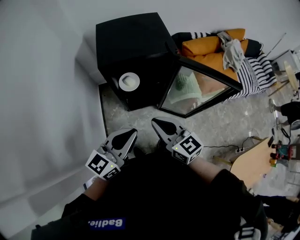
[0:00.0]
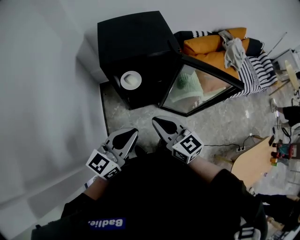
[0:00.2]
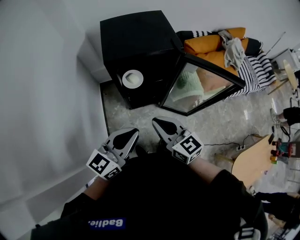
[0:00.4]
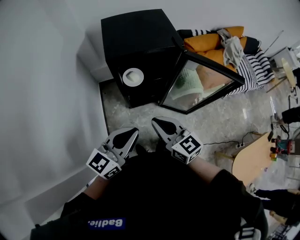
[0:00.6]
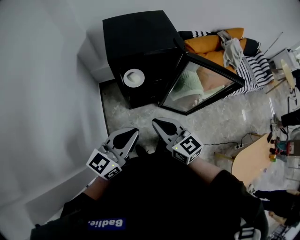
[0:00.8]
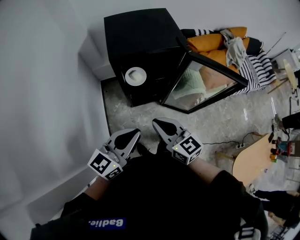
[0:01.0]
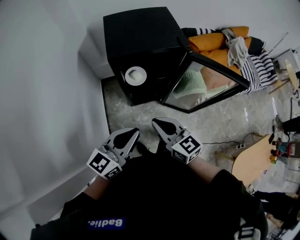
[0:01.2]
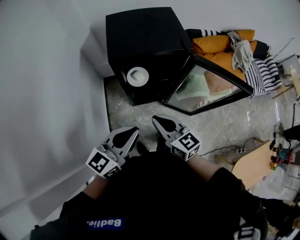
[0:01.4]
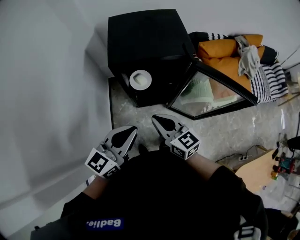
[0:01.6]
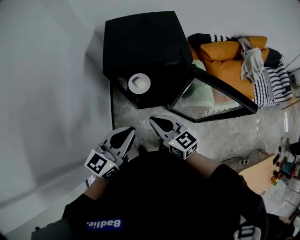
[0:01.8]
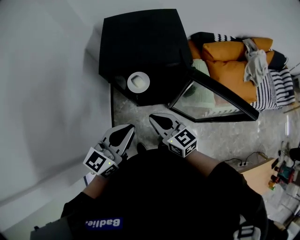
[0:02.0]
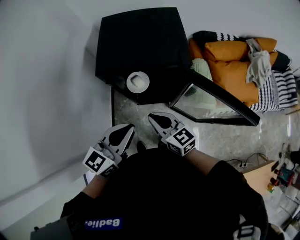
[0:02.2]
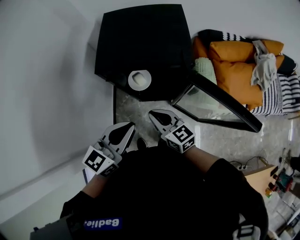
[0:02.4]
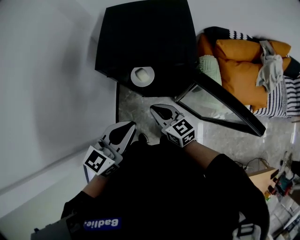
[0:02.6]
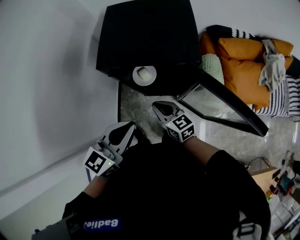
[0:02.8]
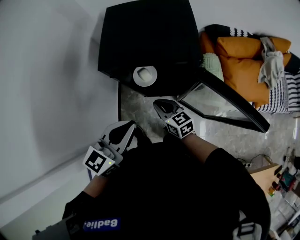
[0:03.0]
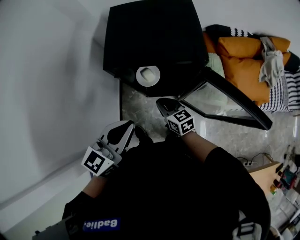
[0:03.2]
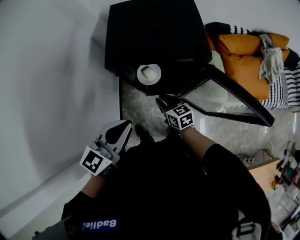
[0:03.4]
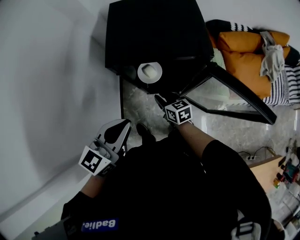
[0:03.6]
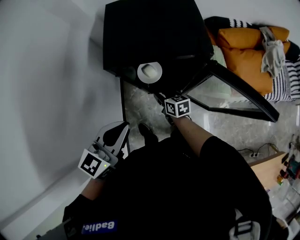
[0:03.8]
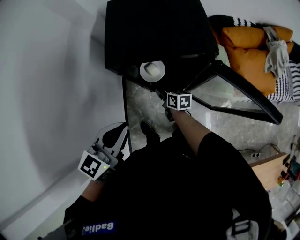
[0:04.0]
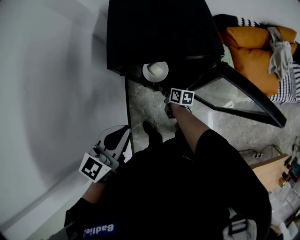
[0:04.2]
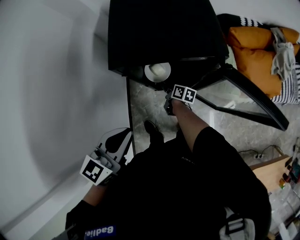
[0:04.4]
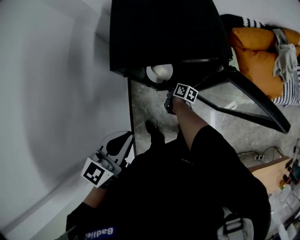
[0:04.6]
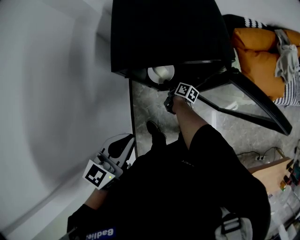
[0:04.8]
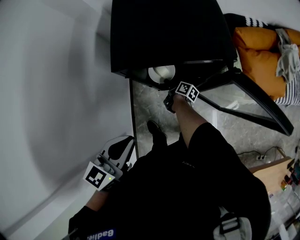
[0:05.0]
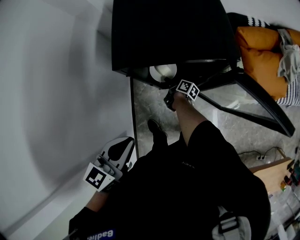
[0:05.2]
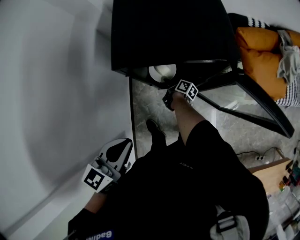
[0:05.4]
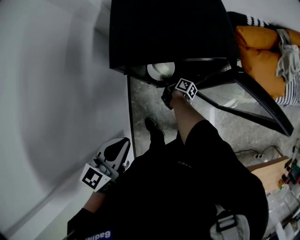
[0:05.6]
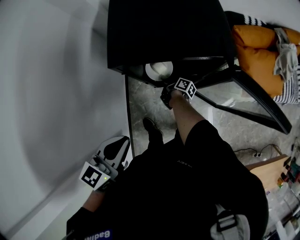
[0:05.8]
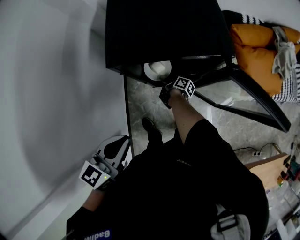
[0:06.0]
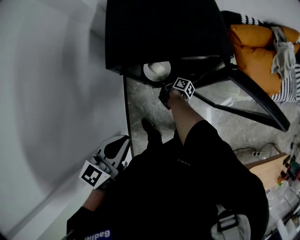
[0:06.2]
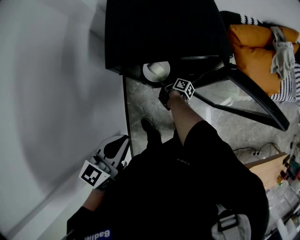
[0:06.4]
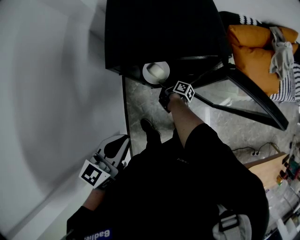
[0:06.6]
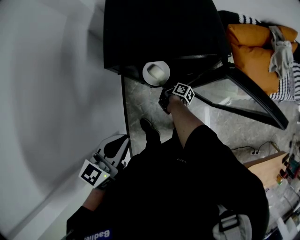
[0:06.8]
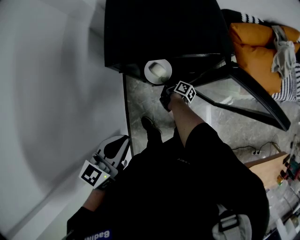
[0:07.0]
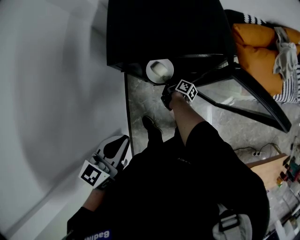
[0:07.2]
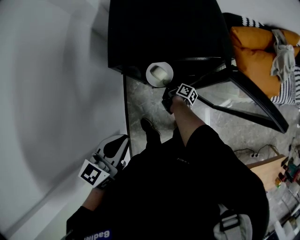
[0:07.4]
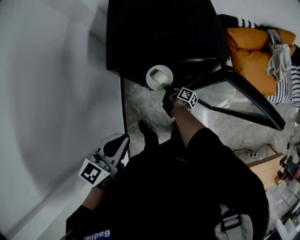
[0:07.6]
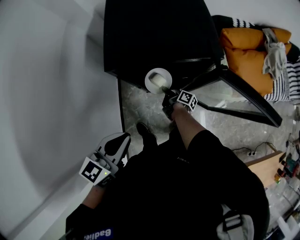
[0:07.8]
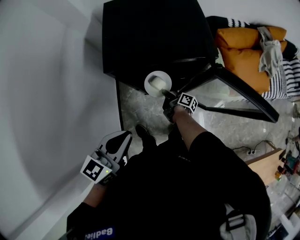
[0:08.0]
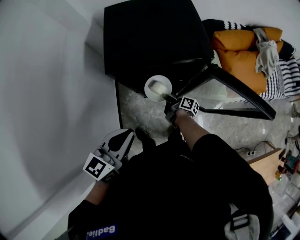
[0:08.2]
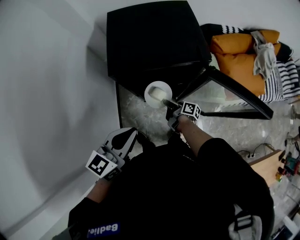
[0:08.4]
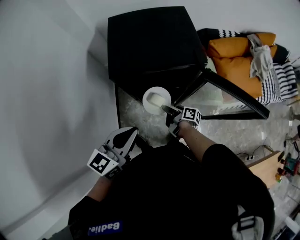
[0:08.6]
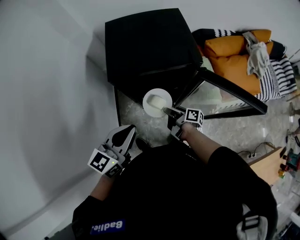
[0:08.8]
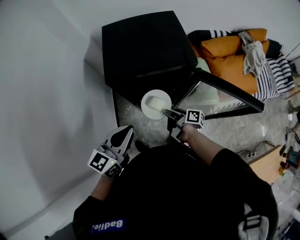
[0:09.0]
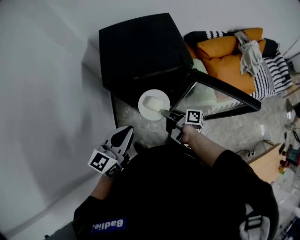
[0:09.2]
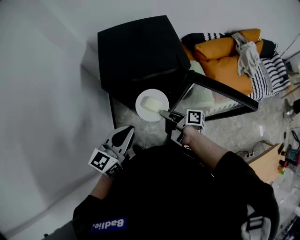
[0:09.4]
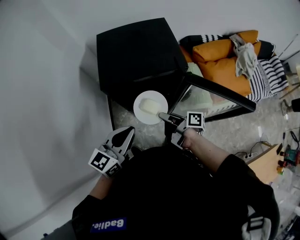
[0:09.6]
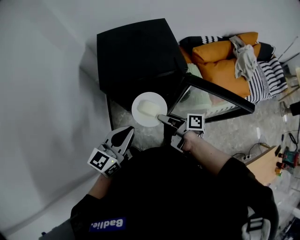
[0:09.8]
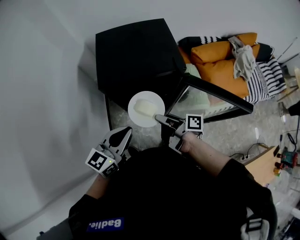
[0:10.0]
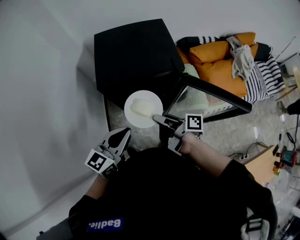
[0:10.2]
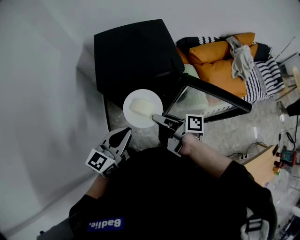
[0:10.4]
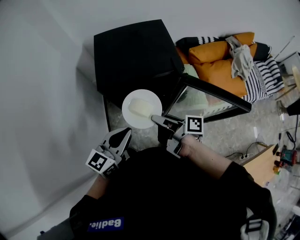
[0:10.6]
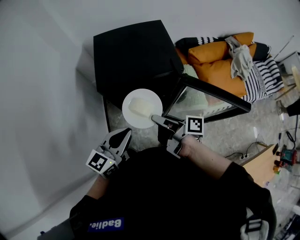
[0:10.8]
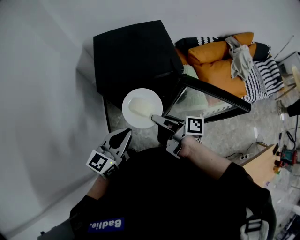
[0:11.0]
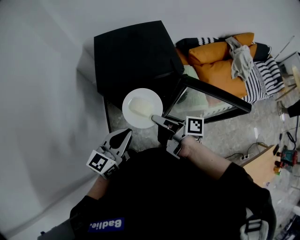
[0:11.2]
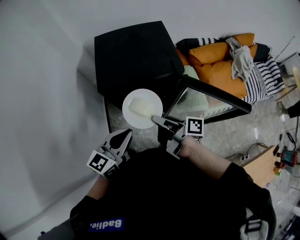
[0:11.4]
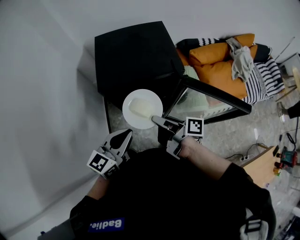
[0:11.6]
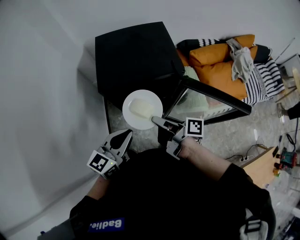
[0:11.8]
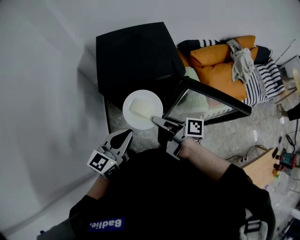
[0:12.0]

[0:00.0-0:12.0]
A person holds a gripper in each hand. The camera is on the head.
0:00.0 to 0:01.6: The left gripper changes place by approximately 5 cm. The right gripper goes about 5 cm downward.
0:01.6 to 0:03.0: The right gripper goes approximately 15 cm downward and forward. Meanwhile the left gripper travels forward and to the right by about 10 cm.
0:03.0 to 0:04.4: The left gripper moves to the left, approximately 10 cm, while the right gripper goes approximately 20 cm downward and forward, twists roughly 50 degrees clockwise, seen from behind, and opens up.
0:04.4 to 0:06.0: The right gripper changes its angle by roughly 30 degrees, and closes up.
0:06.0 to 0:07.6: The right gripper shifts by approximately 5 cm.
0:07.6 to 0:09.0: The left gripper ends up some 5 cm from where it was. The right gripper goes some 20 cm upward and backward.
0:09.0 to 0:10.4: The right gripper moves upward, about 15 cm.
0:10.4 to 0:12.0: Both grippers stay about where they are.

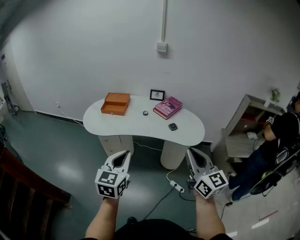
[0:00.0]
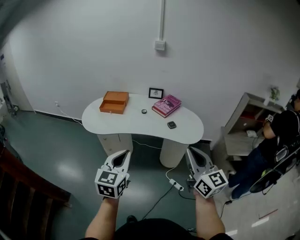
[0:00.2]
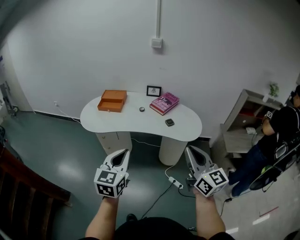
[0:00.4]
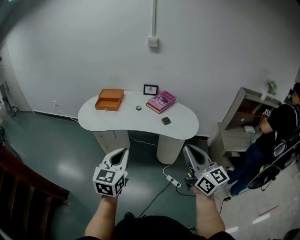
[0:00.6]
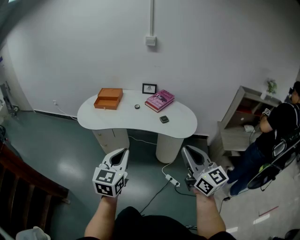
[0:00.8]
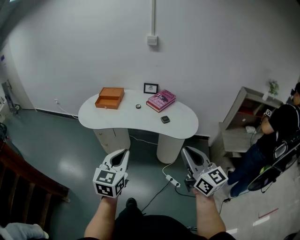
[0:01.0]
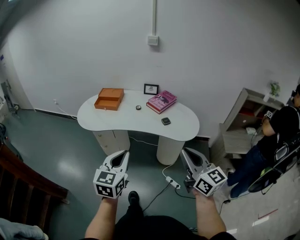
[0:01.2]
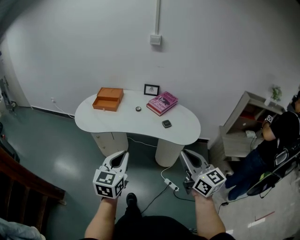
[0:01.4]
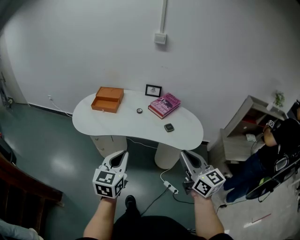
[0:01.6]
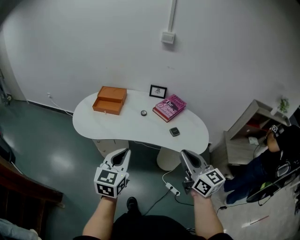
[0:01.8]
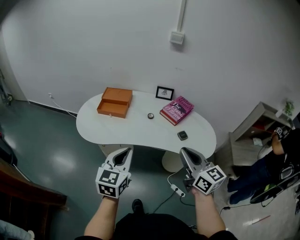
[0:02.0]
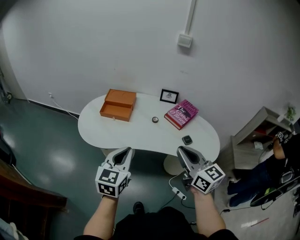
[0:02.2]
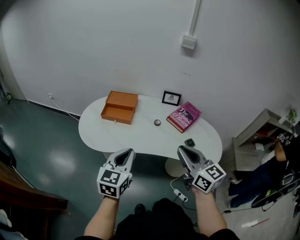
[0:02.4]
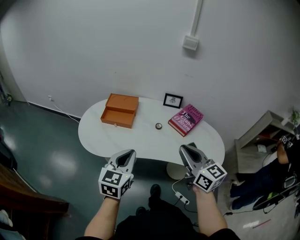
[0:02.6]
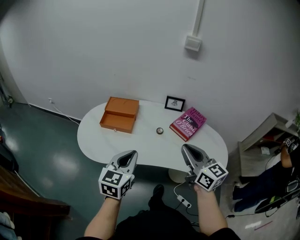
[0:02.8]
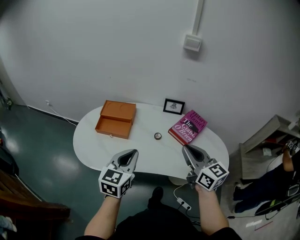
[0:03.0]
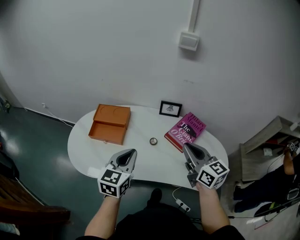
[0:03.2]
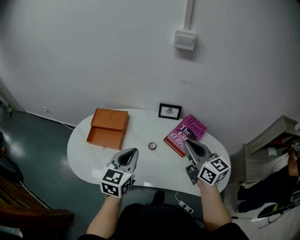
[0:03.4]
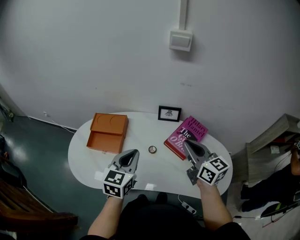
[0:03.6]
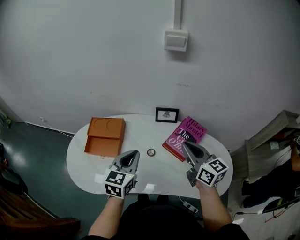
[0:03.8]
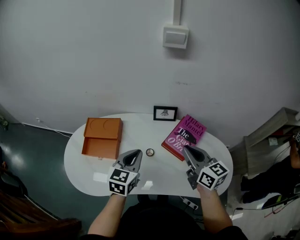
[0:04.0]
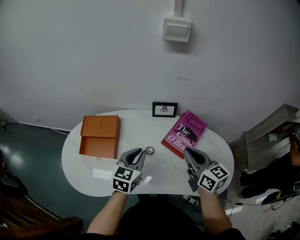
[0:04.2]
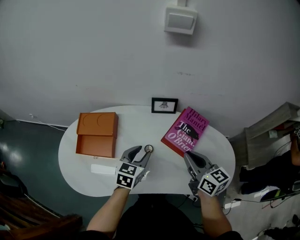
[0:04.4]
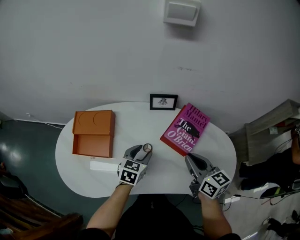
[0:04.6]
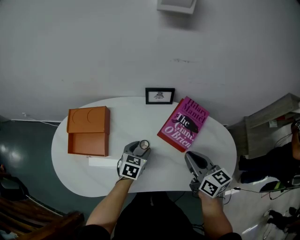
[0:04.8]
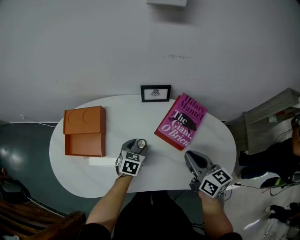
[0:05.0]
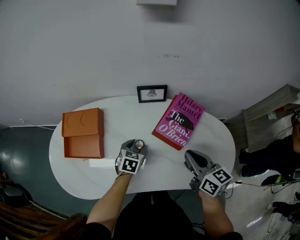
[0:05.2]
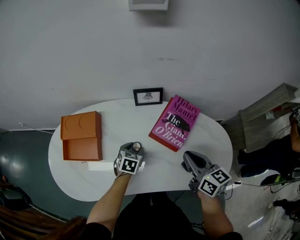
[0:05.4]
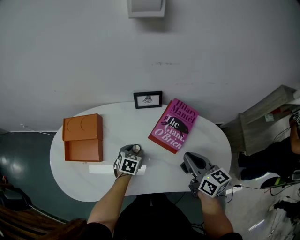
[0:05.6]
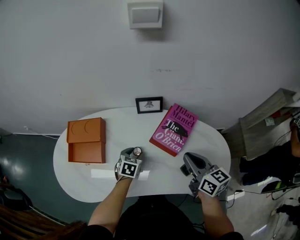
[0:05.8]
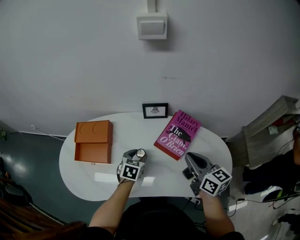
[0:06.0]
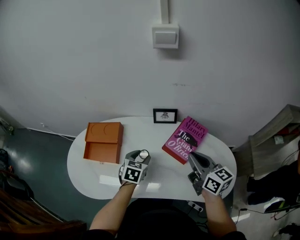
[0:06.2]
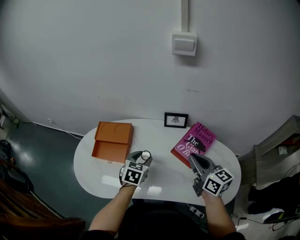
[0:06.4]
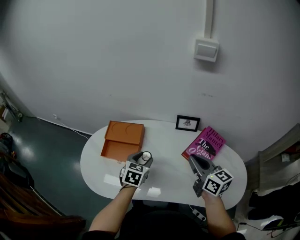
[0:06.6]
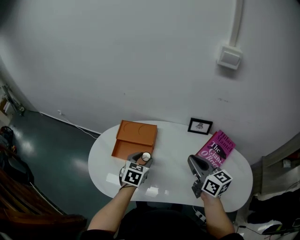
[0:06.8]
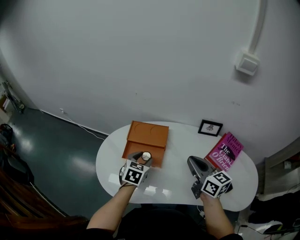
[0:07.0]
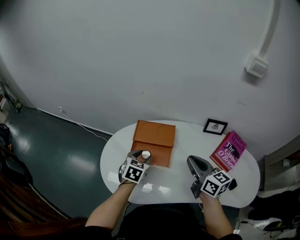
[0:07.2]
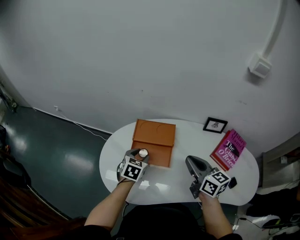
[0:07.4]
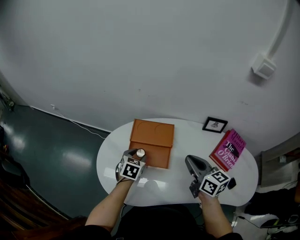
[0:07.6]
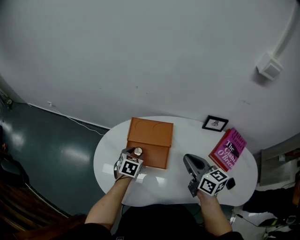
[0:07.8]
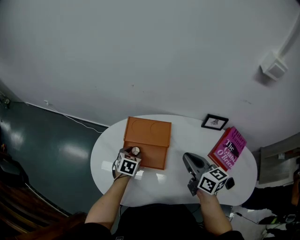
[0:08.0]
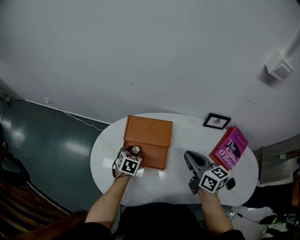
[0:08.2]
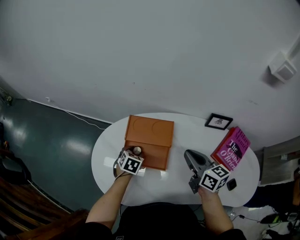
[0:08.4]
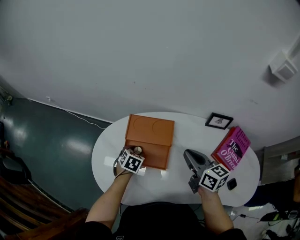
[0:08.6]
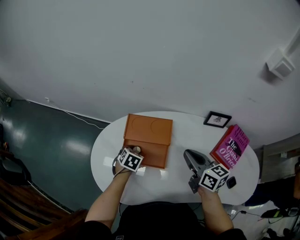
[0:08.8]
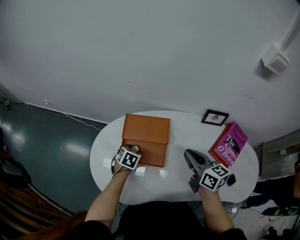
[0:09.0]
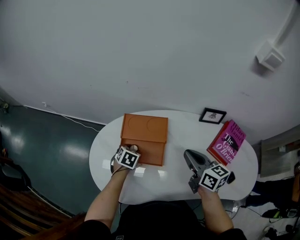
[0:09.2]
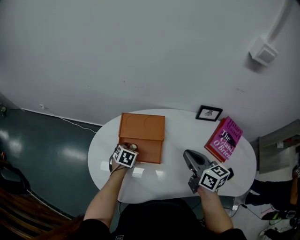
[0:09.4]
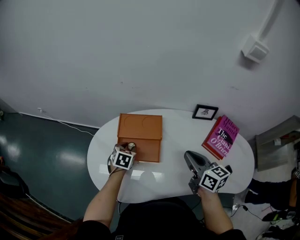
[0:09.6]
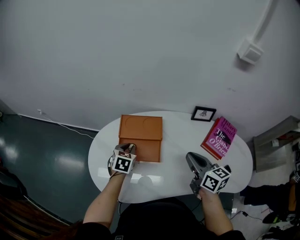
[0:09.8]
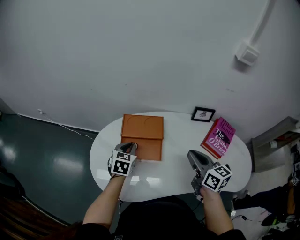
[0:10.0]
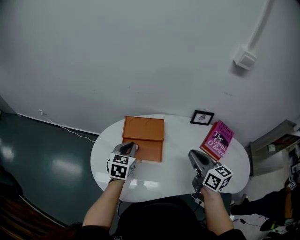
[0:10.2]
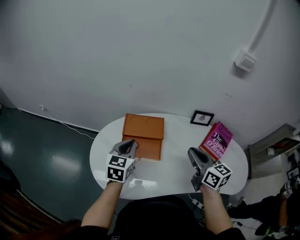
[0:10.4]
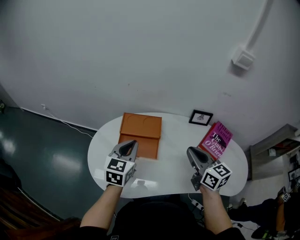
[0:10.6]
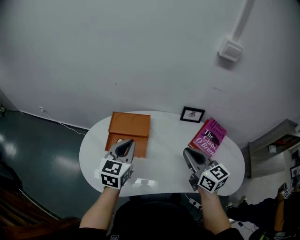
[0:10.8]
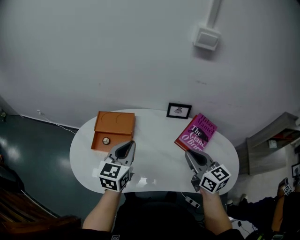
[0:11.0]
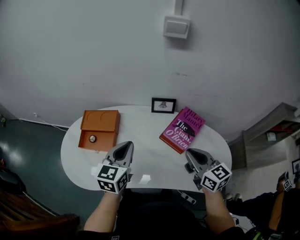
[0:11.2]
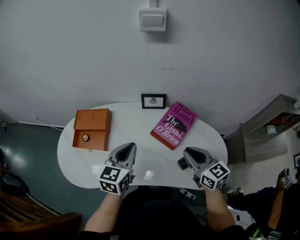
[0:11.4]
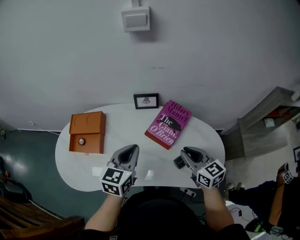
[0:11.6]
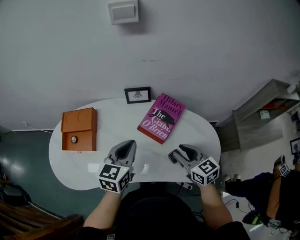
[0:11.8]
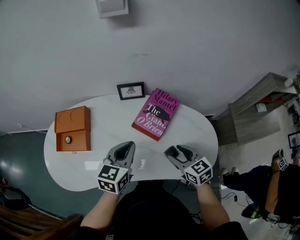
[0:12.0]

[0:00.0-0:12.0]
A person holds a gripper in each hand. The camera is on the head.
0:00.0 to 0:01.6: The grippers both shift forward and downward by roughly 10 cm.
0:01.6 to 0:03.0: Both grippers travel together forward, approximately 35 cm.
0:03.0 to 0:04.4: Both grippers travel together forward, downward and to the right, about 25 cm. The left gripper changes its angle by approximately 20 degrees, and opens up.
0:04.4 to 0:06.0: The right gripper goes some 5 cm to the right; the left gripper travels downward by roughly 10 cm.
0:06.0 to 0:07.6: Both grippers move to the left, approximately 35 cm.
0:07.6 to 0:09.0: The left gripper travels downward by approximately 10 cm, while the right gripper ends up approximately 5 cm from where it was.
0:09.0 to 0:10.4: The right gripper goes roughly 10 cm backward and upward. The left gripper goes about 20 cm upward, tilts its fingers about 40 degrees upward, and closes its fingers.
0:10.4 to 0:12.0: The right gripper shifts some 40 cm to the right and downward, and opens its fingers. The left gripper travels to the right by approximately 40 cm.
